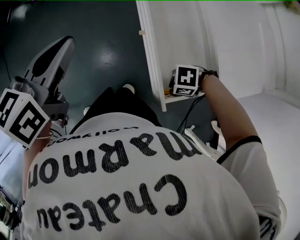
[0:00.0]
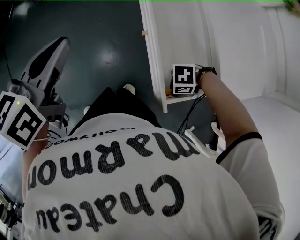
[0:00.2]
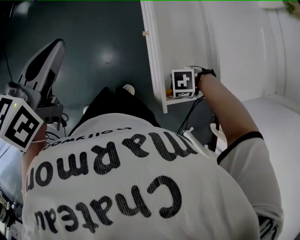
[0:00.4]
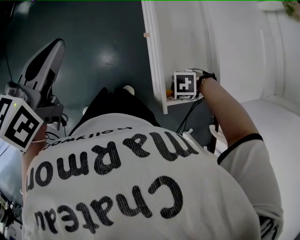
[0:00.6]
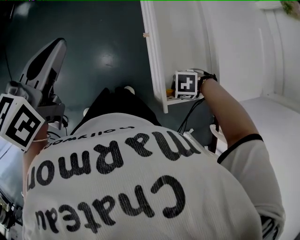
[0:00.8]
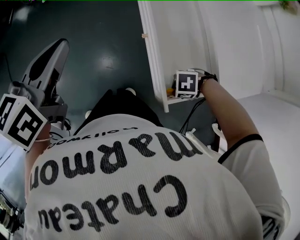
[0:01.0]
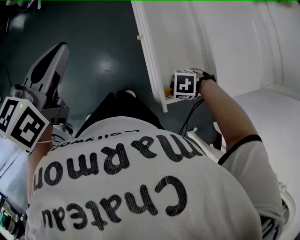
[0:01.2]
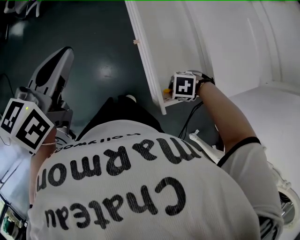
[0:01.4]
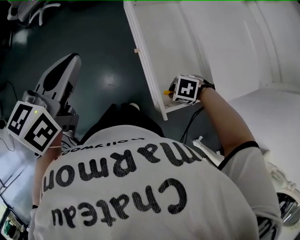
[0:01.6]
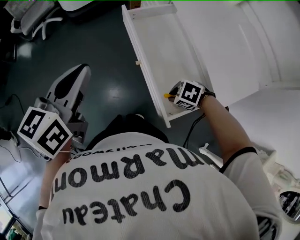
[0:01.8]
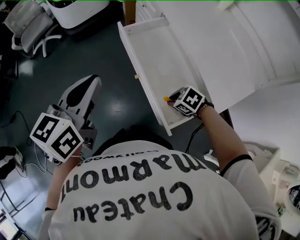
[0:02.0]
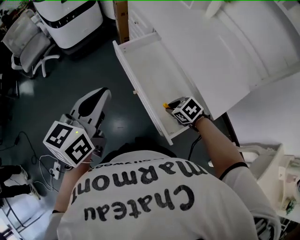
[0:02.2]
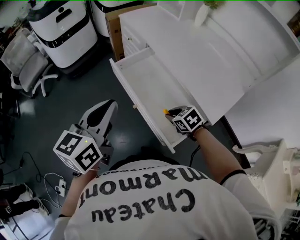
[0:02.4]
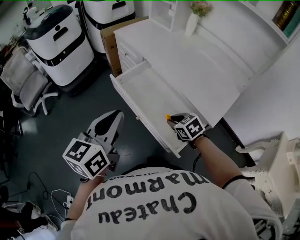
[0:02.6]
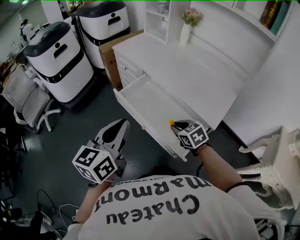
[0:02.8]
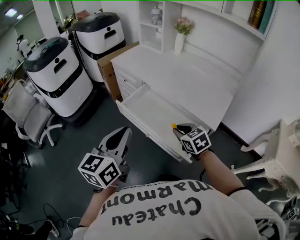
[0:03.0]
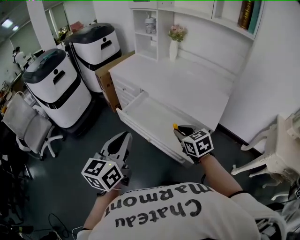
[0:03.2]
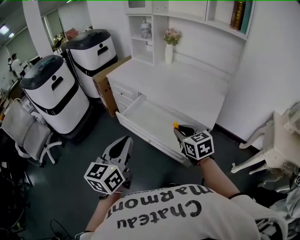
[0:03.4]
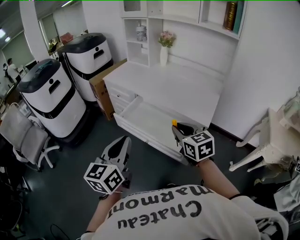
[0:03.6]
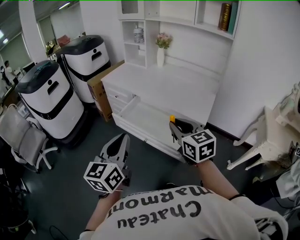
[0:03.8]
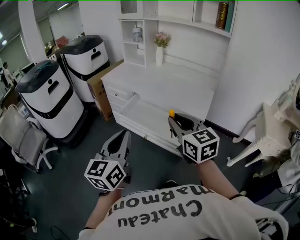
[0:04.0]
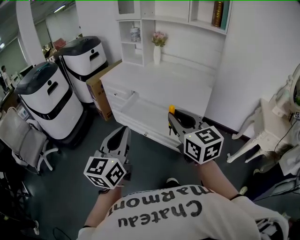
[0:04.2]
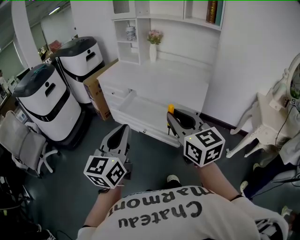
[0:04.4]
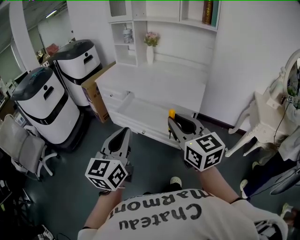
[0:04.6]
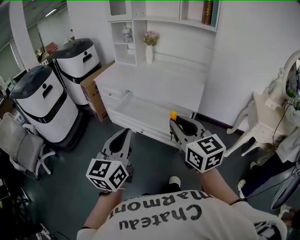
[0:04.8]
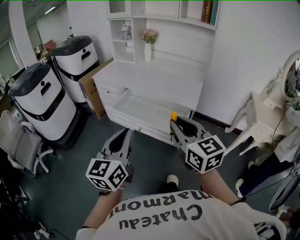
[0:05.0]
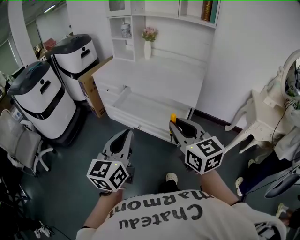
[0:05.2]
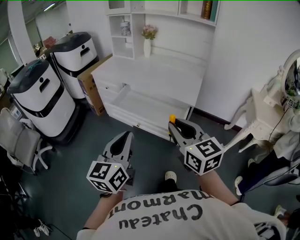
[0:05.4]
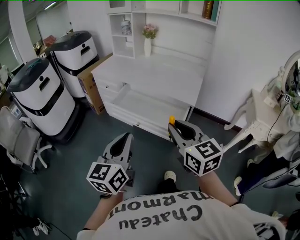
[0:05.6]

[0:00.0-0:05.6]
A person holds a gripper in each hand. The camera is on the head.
0.0 to 1.4 s: The grippers make only small movements.
1.4 to 2.8 s: The left gripper travels upward by some 10 cm, and rotates some 30 degrees; the right gripper moves upward, about 20 cm, and turns by about 90 degrees.
2.8 to 4.2 s: The right gripper heads upward and backward, covering some 35 cm, and tilts its fingers some 40 degrees upward; the left gripper heads backward, upward and to the left, covering some 15 cm.
4.2 to 5.6 s: Both grippers travel together backward, some 5 cm.

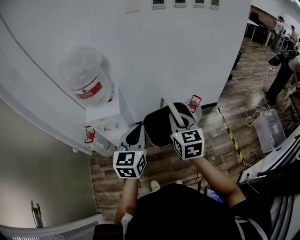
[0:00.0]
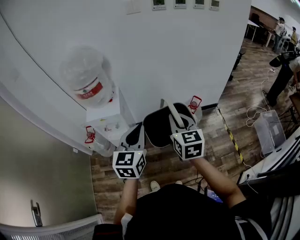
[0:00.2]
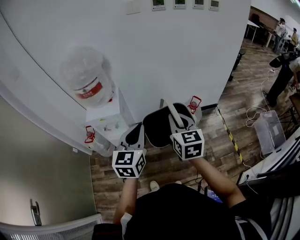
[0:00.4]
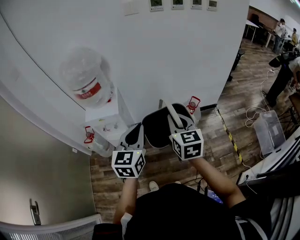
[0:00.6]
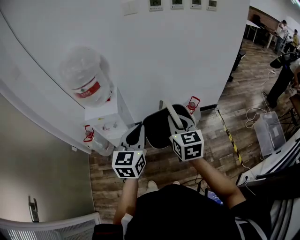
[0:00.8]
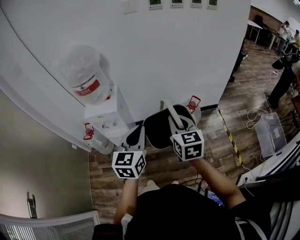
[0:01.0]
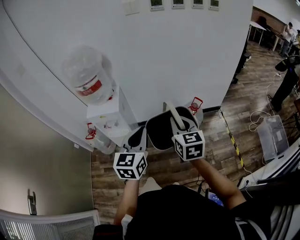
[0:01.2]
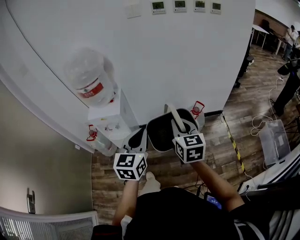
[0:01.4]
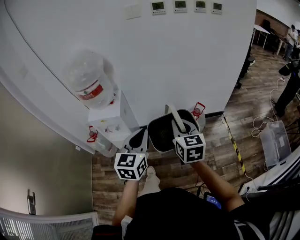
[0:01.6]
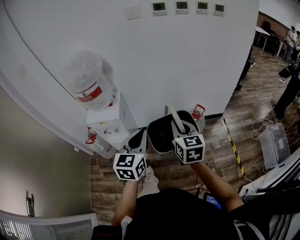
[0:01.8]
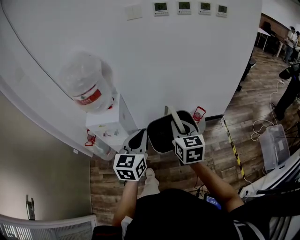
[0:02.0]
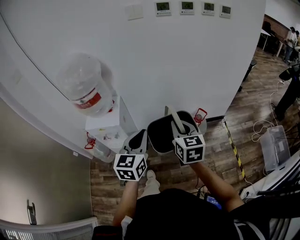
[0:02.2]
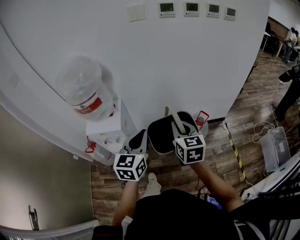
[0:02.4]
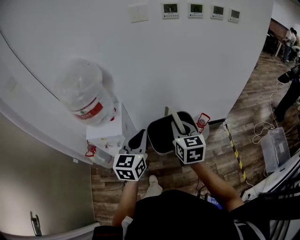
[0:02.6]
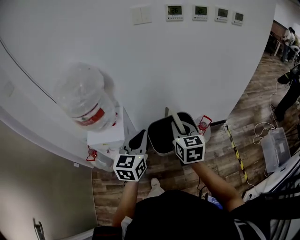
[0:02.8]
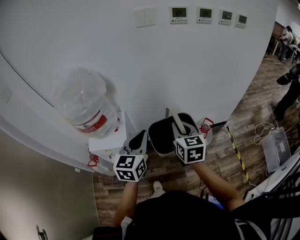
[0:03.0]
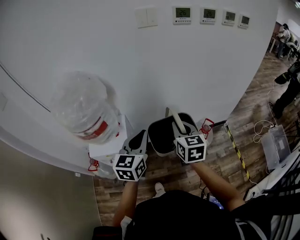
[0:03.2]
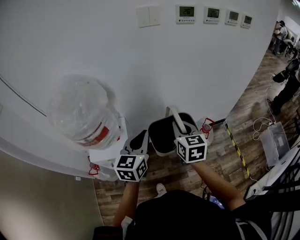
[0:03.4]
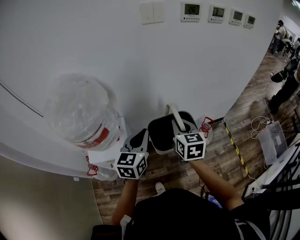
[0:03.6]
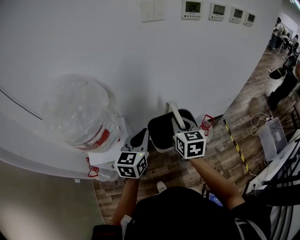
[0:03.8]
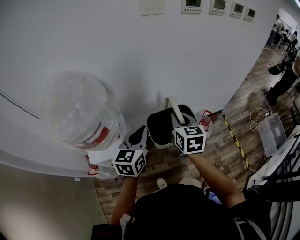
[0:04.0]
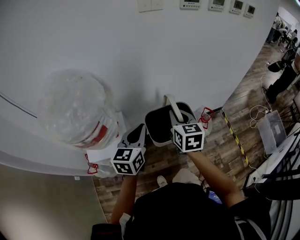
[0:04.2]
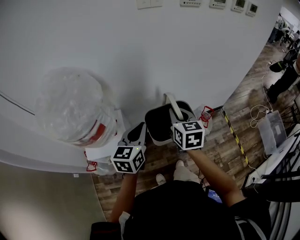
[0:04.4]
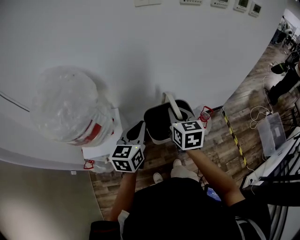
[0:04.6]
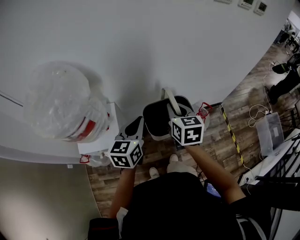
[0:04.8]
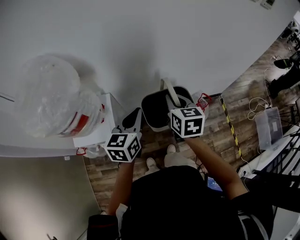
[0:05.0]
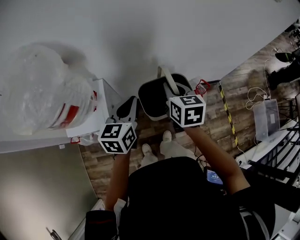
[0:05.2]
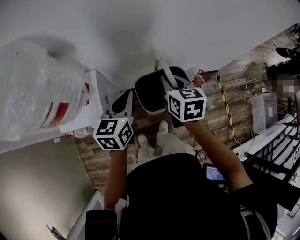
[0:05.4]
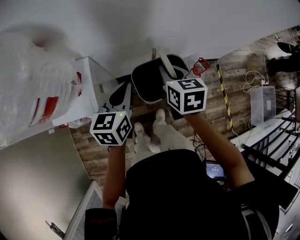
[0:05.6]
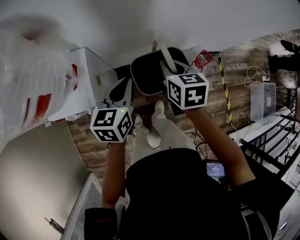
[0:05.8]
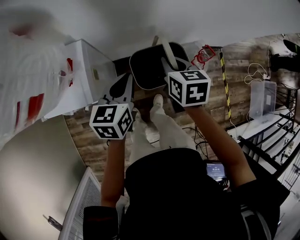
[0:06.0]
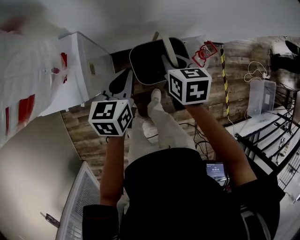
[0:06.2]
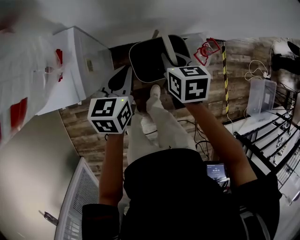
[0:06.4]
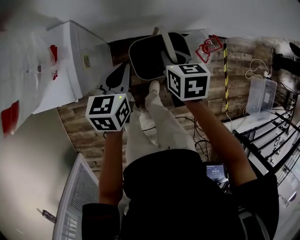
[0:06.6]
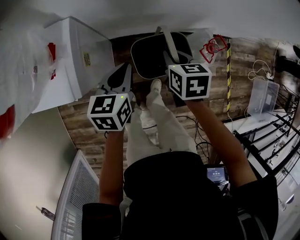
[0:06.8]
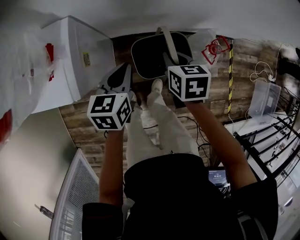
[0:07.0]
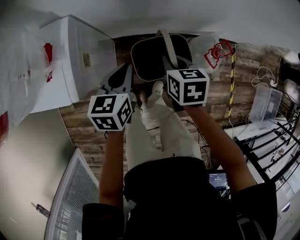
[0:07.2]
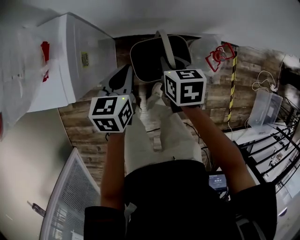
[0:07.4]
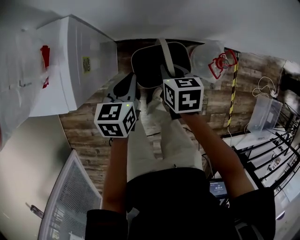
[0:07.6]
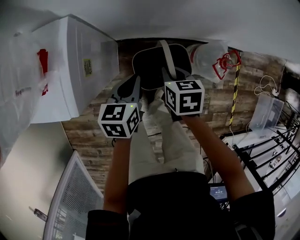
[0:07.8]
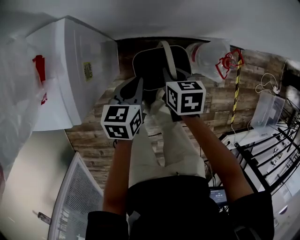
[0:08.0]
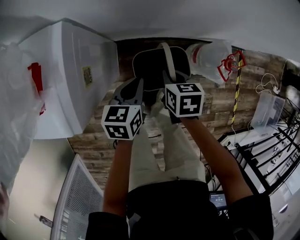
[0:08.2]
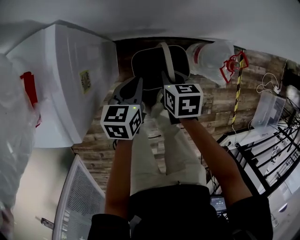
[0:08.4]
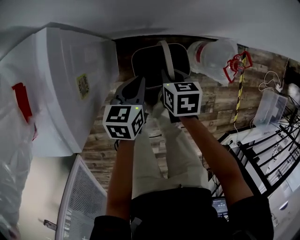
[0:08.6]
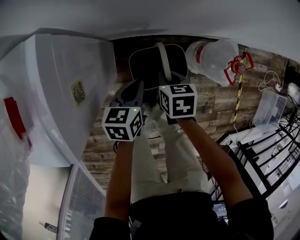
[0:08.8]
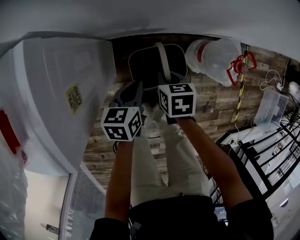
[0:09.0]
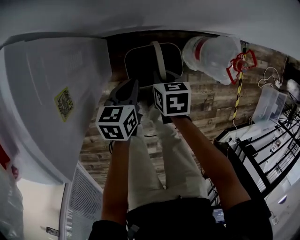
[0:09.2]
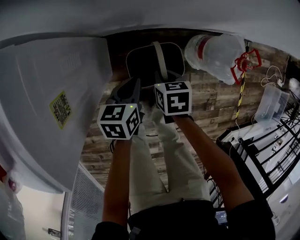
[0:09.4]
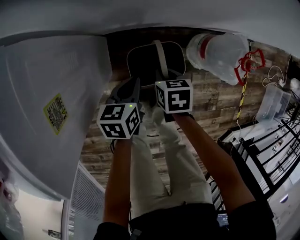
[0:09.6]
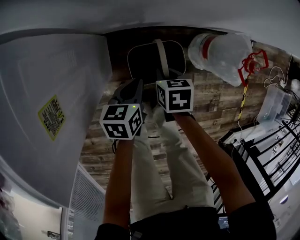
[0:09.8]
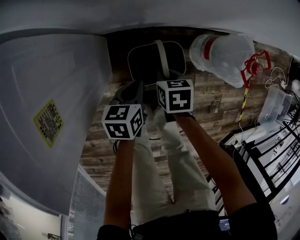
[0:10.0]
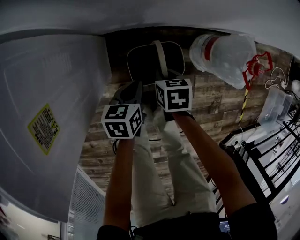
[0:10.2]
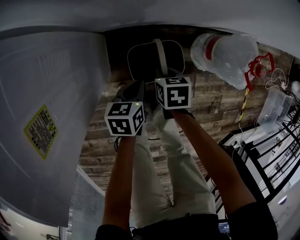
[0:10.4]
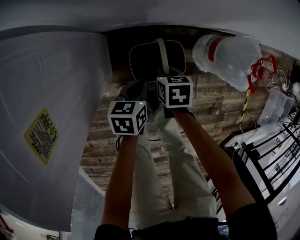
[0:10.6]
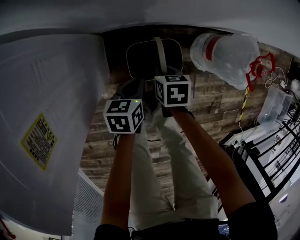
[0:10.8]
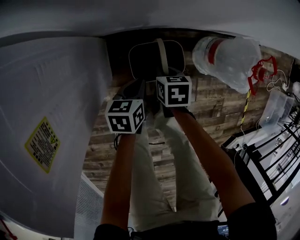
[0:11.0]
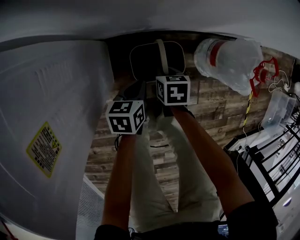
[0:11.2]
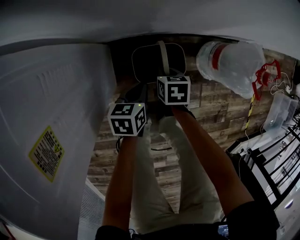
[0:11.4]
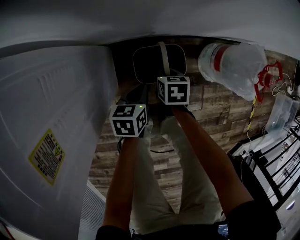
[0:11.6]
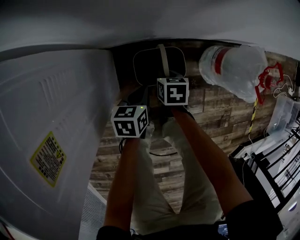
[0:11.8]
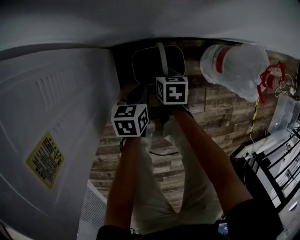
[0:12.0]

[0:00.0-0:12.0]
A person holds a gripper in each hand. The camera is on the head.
0.0 to 1.6 s: Both grippers move to the right, approximately 5 cm.
1.6 to 3.0 s: The grippers both shift forward and to the left by roughly 25 cm.
3.0 to 4.4 s: The right gripper goes about 10 cm forward and to the left; the left gripper travels forward, to the left and downward by approximately 10 cm.
4.4 to 6.0 s: The grippers both shift downward by about 20 cm. The right gripper rotates some 20 degrees.
6.0 to 7.6 s: The two grippers go roughly 20 cm downward.
7.6 to 9.0 s: Both grippers travel together downward, some 15 cm.
9.0 to 10.4 s: Both grippers travel together downward, some 15 cm.
10.4 to 12.0 s: Both grippers move downward, some 5 cm.

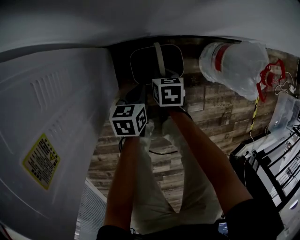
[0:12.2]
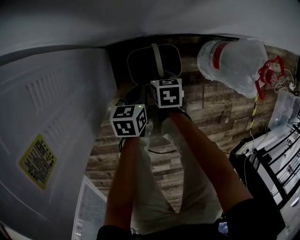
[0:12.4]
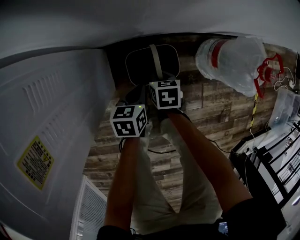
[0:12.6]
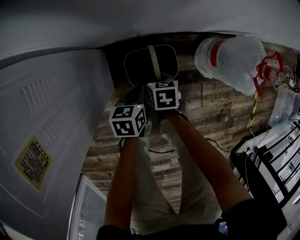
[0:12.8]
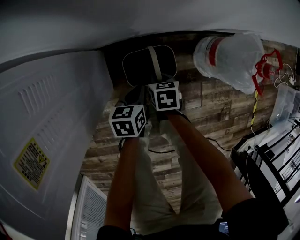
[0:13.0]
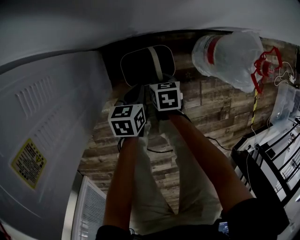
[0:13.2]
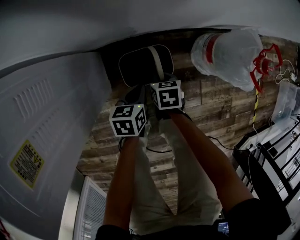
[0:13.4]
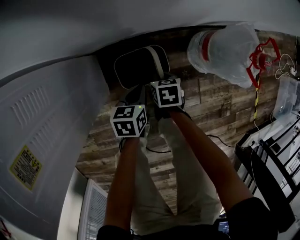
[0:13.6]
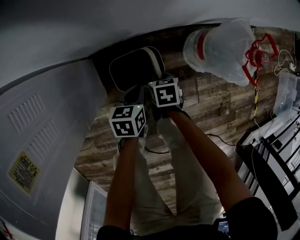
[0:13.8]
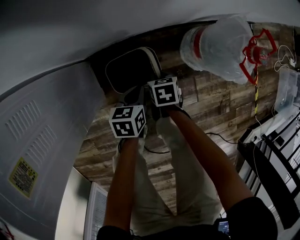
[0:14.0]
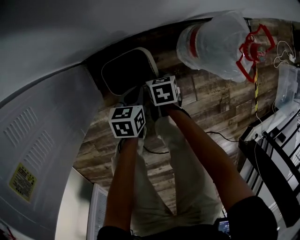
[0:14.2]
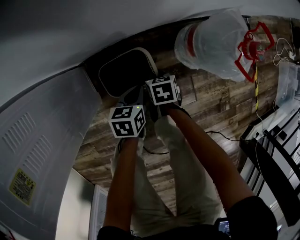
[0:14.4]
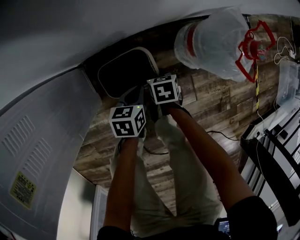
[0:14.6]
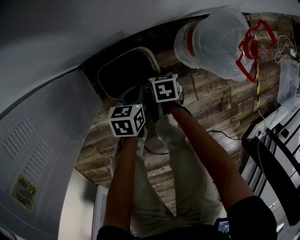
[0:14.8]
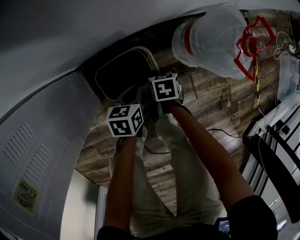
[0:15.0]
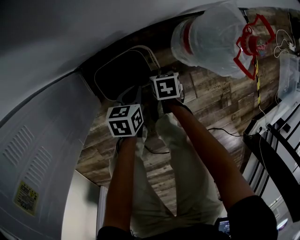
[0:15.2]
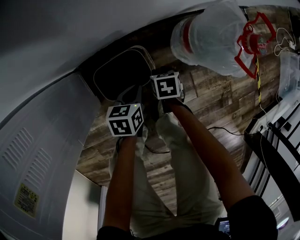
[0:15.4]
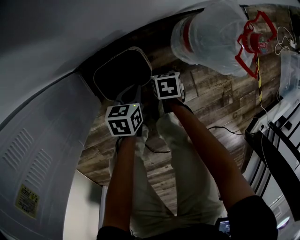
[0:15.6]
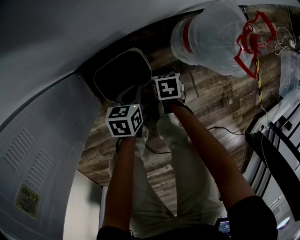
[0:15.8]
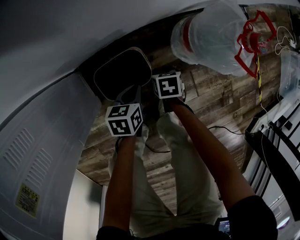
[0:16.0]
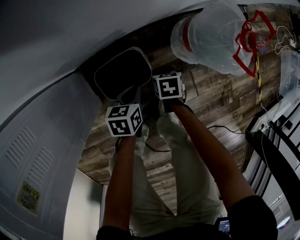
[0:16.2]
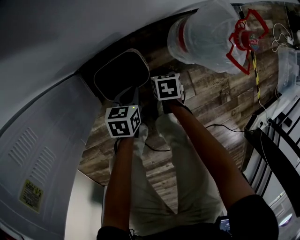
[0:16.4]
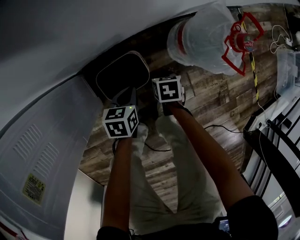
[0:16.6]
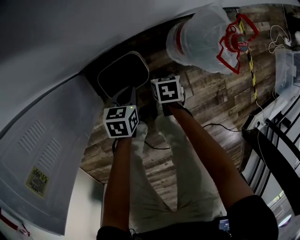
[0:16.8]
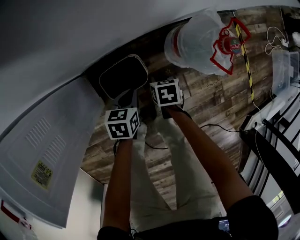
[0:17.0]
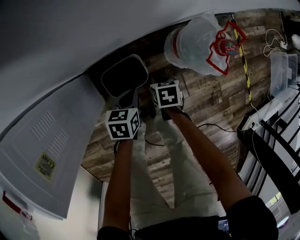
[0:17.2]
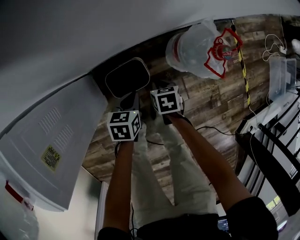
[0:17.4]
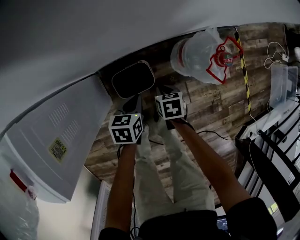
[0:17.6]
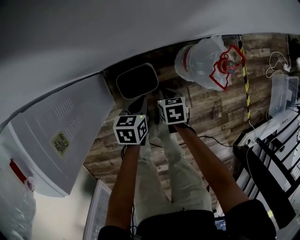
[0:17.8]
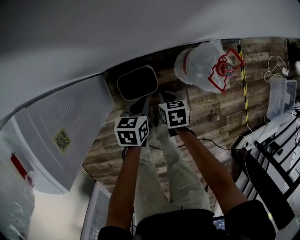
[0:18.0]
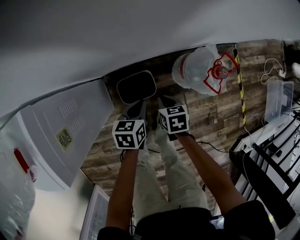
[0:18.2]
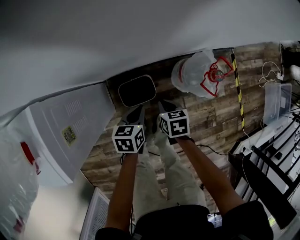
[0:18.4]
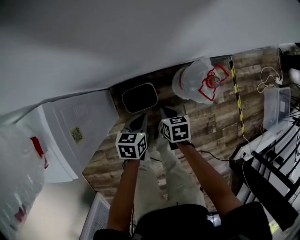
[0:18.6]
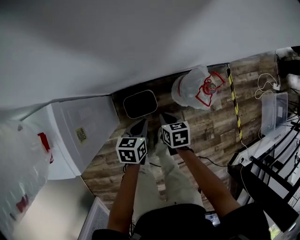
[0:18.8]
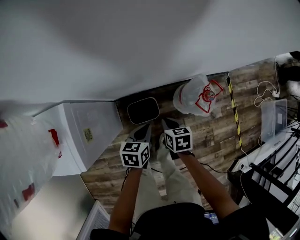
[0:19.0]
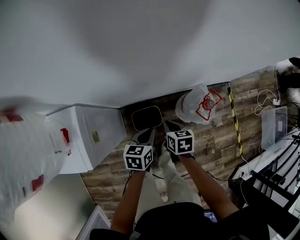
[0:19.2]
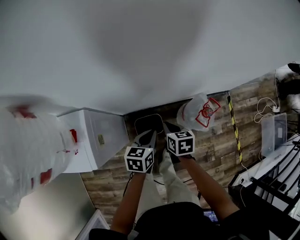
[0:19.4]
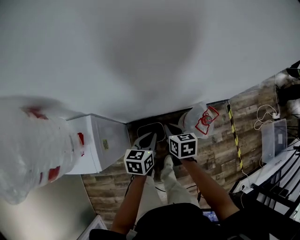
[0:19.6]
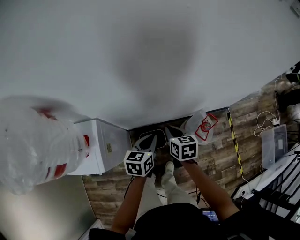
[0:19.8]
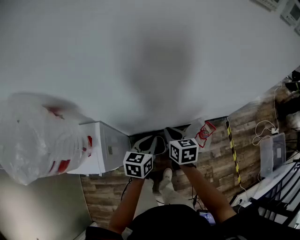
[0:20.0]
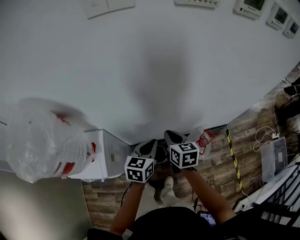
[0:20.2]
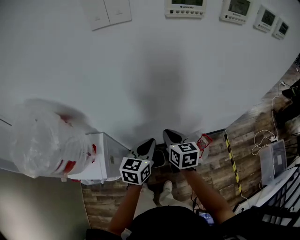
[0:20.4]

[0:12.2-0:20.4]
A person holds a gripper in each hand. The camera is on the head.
12.2 to 13.8 s: Both grippers move to the right, roughly 10 cm.
13.8 to 15.4 s: The left gripper shifts roughly 5 cm to the right. The right gripper travels to the right and downward by approximately 10 cm.
15.4 to 17.2 s: The grippers both shift upward by about 15 cm.
17.2 to 18.8 s: The two grippers go some 20 cm upward.
18.8 to 20.4 s: Both grippers move upward, some 35 cm. The right gripper tips its fingers upward by approximately 30 degrees, while the left gripper rotates some 30 degrees.
